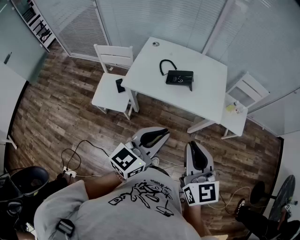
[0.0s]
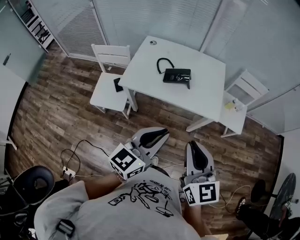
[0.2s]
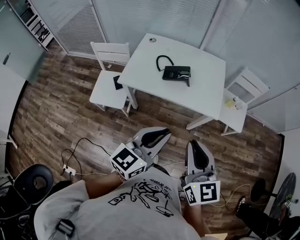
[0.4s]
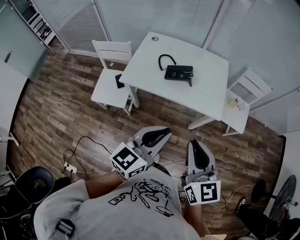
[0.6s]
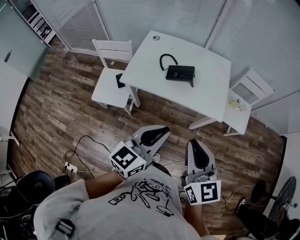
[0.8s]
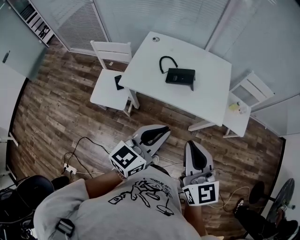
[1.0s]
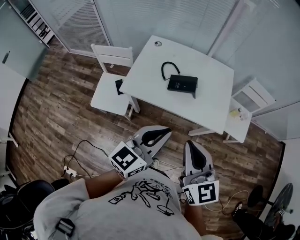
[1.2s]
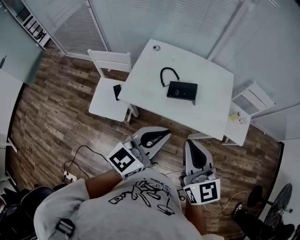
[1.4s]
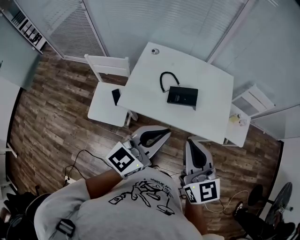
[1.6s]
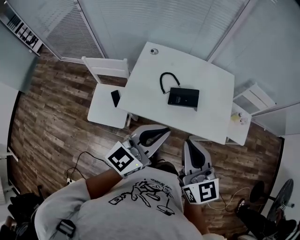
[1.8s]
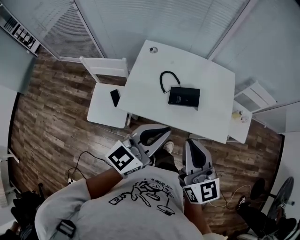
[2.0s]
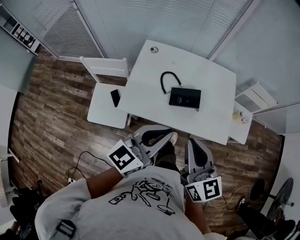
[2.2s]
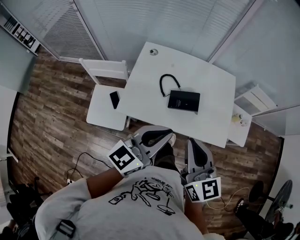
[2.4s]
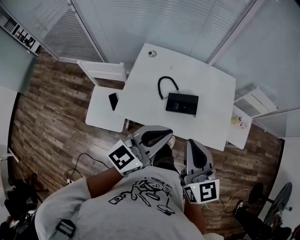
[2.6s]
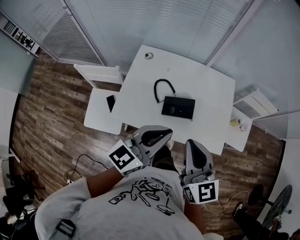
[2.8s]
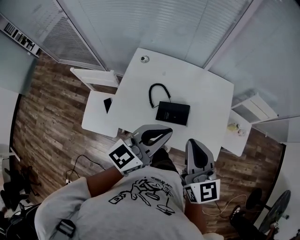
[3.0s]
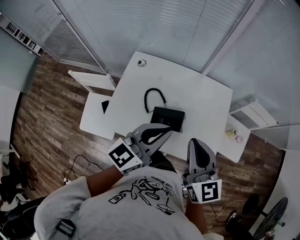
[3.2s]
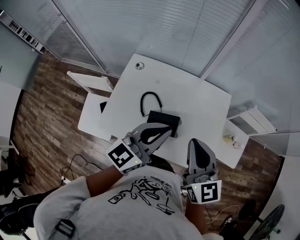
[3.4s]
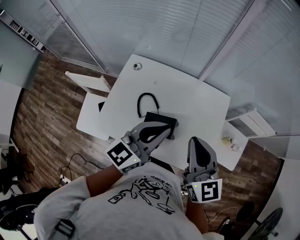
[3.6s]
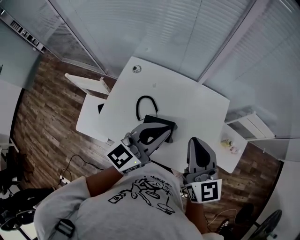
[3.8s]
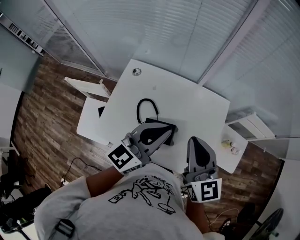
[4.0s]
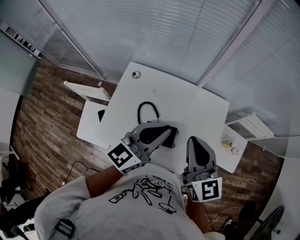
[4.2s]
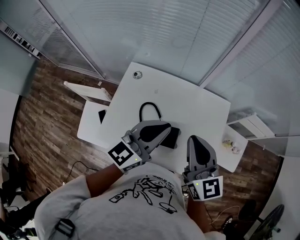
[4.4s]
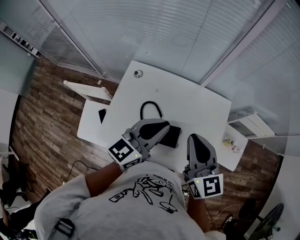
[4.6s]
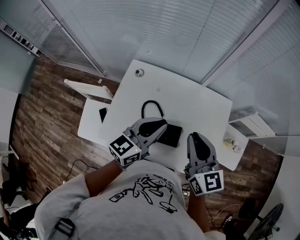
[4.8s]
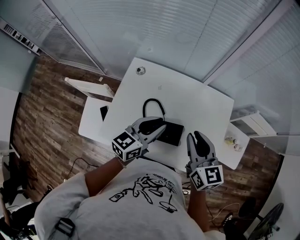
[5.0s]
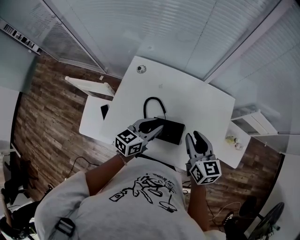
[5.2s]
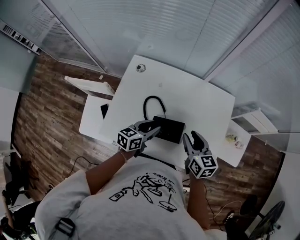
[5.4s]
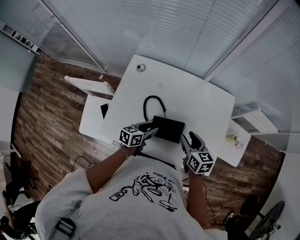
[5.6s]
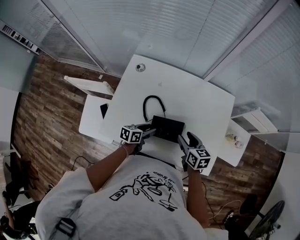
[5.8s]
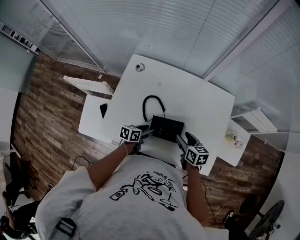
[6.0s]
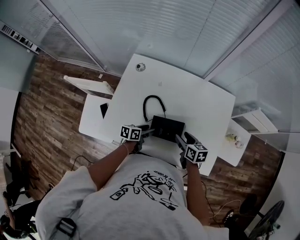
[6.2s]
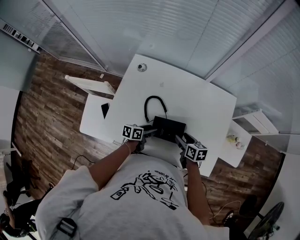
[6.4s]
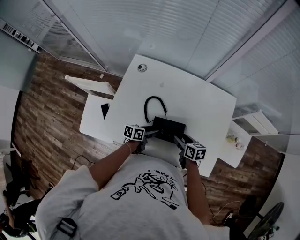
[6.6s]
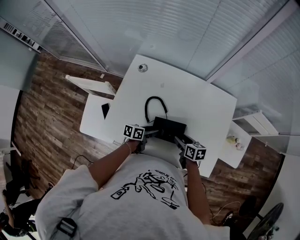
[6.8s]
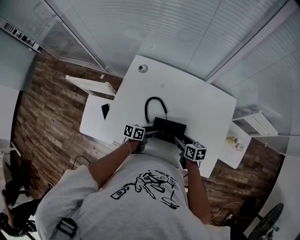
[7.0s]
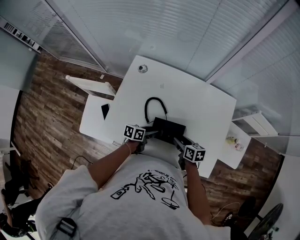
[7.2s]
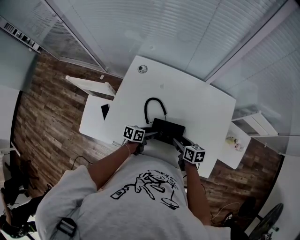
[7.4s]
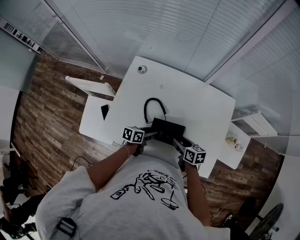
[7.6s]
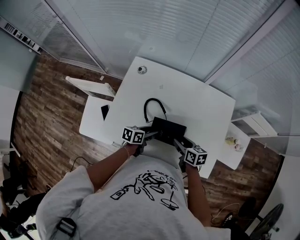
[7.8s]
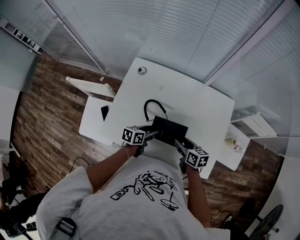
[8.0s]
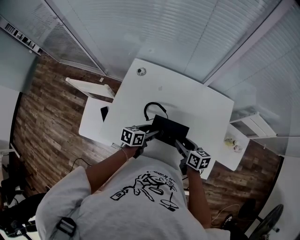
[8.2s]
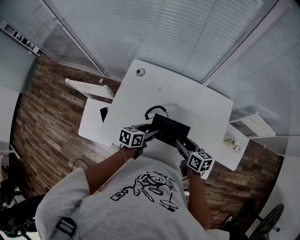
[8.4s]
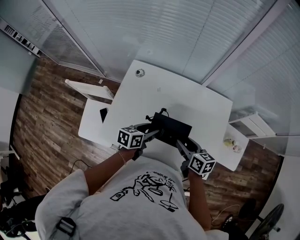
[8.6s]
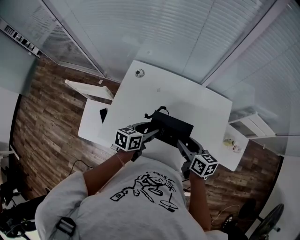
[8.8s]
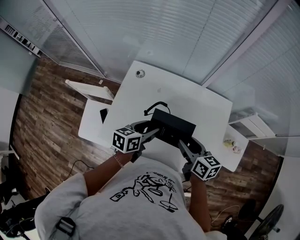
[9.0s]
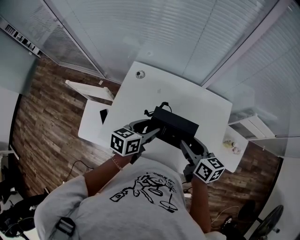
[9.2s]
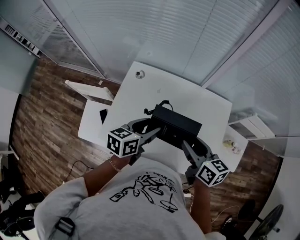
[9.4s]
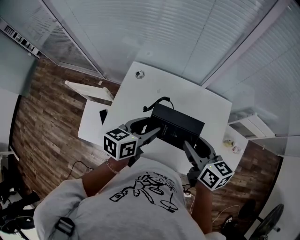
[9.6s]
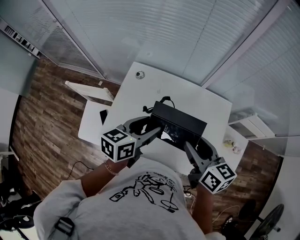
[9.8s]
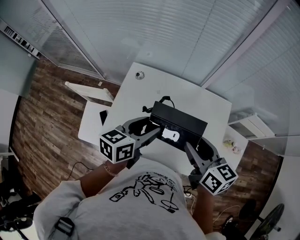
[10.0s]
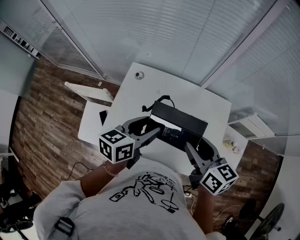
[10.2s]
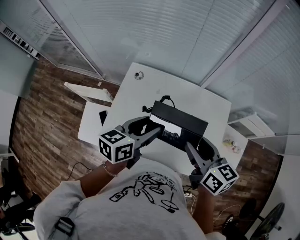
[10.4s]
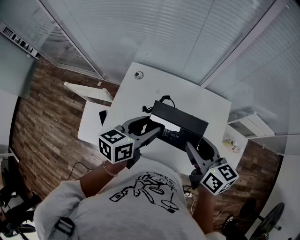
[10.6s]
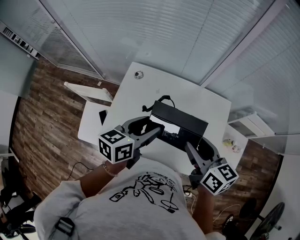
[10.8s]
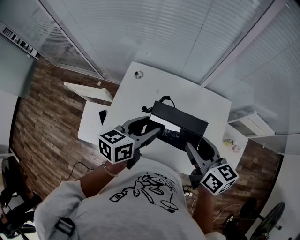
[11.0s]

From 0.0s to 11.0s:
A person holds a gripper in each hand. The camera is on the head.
From 0.0s to 1.6s: Both grippers move forward and to the left, about 20 cm.
From 1.6s to 3.2s: The grippers both shift forward by about 20 cm.
From 3.2s to 4.8s: The grippers both shift forward by some 10 cm.
From 4.8s to 6.2s: Both grippers travel together downward, some 35 cm. The right gripper rotates some 40 degrees, and opens up; the left gripper changes its angle by approximately 50 degrees, and opens its fingers.
From 6.2s to 7.8s: The grippers move only a little.
From 7.8s to 9.4s: The two grippers go approximately 25 cm upward.
From 9.4s to 11.0s: The grippers both shift upward by some 5 cm.

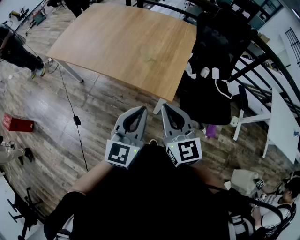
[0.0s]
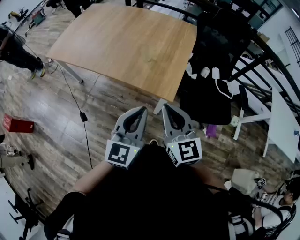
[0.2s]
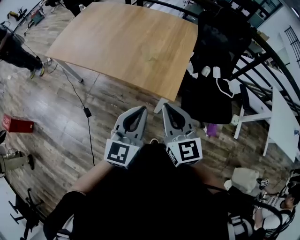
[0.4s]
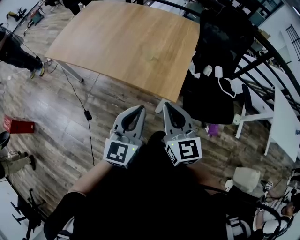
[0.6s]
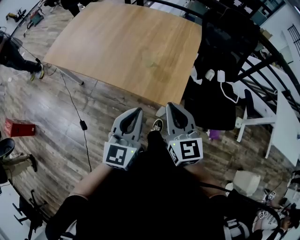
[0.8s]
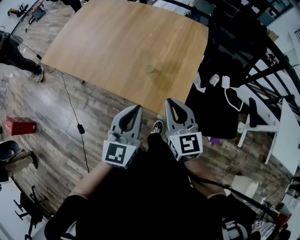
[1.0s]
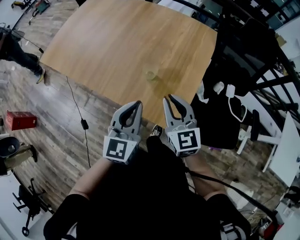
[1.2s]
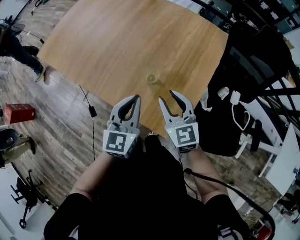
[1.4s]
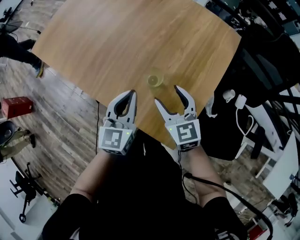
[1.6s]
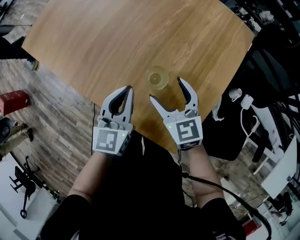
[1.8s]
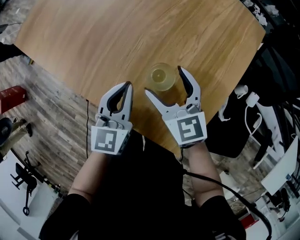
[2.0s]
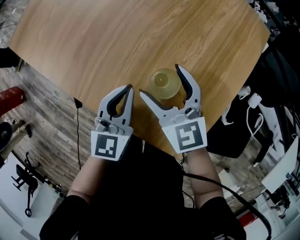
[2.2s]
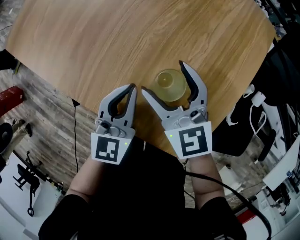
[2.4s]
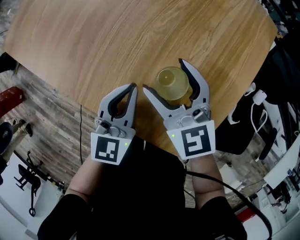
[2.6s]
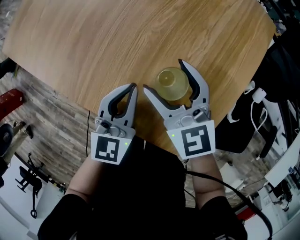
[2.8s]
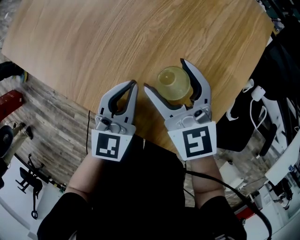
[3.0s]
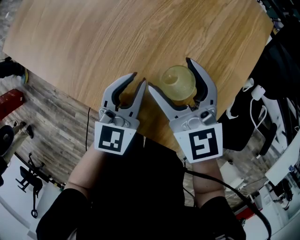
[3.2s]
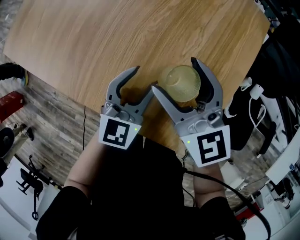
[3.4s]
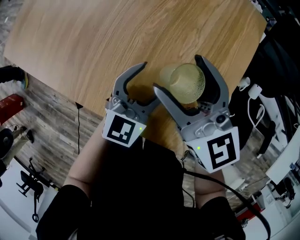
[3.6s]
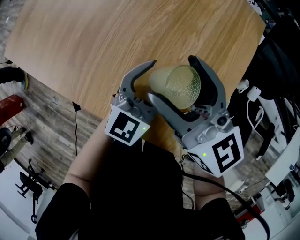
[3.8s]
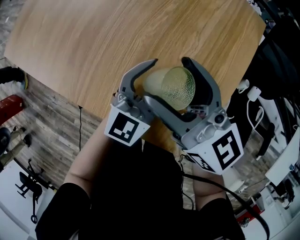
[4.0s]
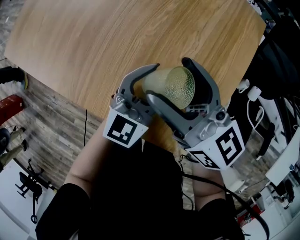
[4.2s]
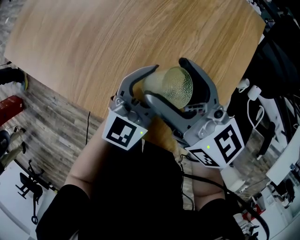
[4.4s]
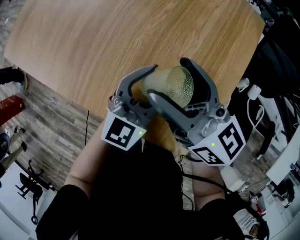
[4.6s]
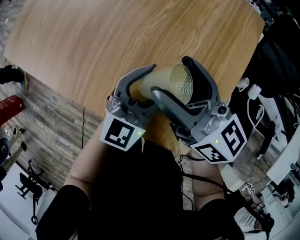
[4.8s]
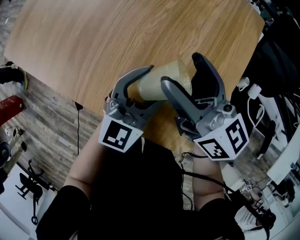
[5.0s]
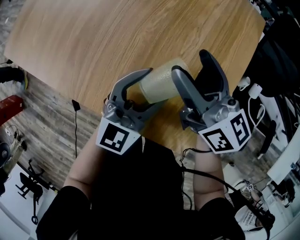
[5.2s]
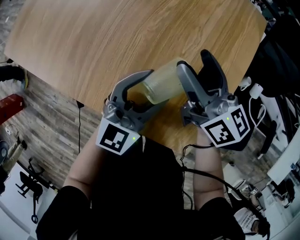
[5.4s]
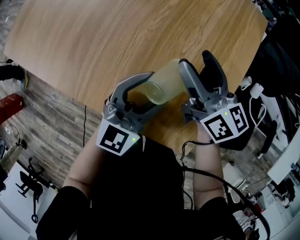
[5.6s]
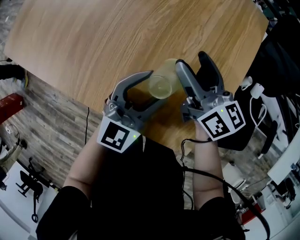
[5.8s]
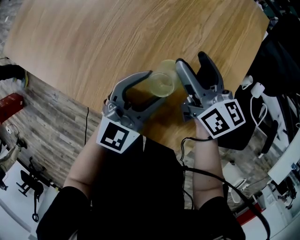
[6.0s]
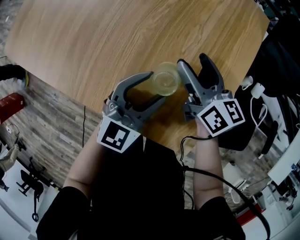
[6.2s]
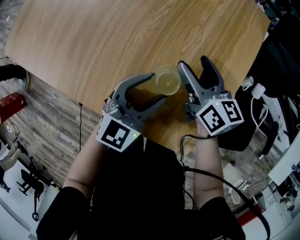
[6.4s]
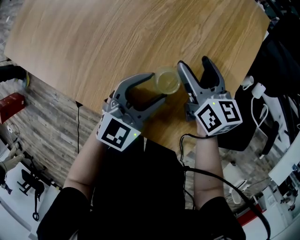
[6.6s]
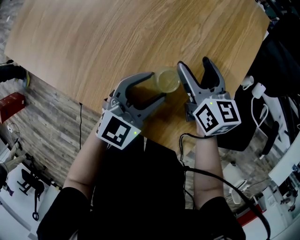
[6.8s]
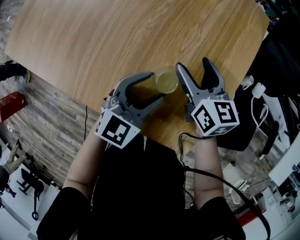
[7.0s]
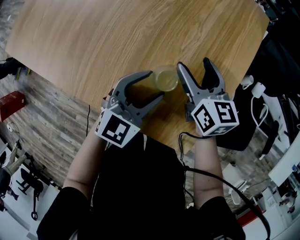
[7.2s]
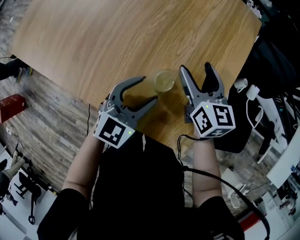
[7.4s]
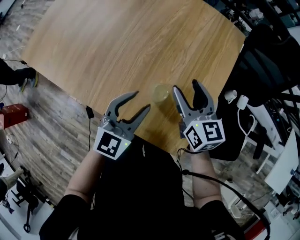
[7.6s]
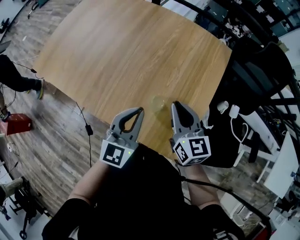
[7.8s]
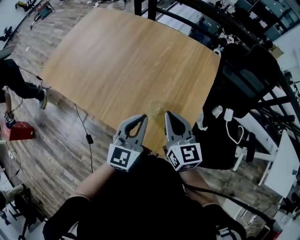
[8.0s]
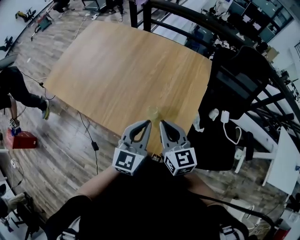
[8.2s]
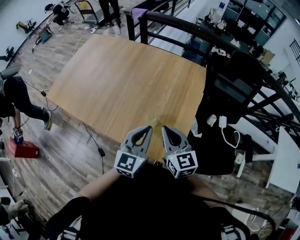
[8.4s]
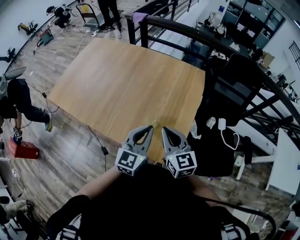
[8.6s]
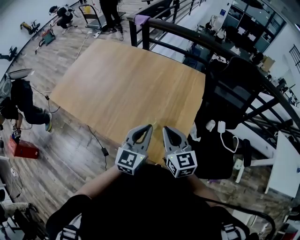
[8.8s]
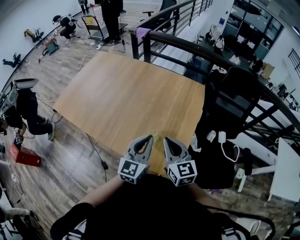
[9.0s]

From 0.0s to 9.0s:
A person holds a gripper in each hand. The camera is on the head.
From 0.0s to 1.6s: The two grippers travel together, forward, some 40 cm. Both grippers move downward, roughly 20 cm. The left gripper changes its angle by approximately 20 degrees, while the right gripper swivels roughly 20 degrees, and opens its fingers.
From 1.6s to 3.0s: The left gripper travels downward and forward by roughly 15 cm. Meanwhile the right gripper travels forward, to the left and downward by approximately 15 cm.
From 3.0s to 4.4s: The right gripper travels upward by approximately 10 cm, and turns by roughly 30 degrees. The left gripper travels to the right by approximately 10 cm, turns by about 30 degrees, and opens.
From 4.4s to 6.0s: The right gripper moves downward and to the right, some 10 cm.
From 6.0s to 7.6s: The right gripper shifts roughly 10 cm upward and backward; the left gripper goes some 10 cm upward.
From 7.6s to 9.0s: Both grippers travel together upward and backward, about 20 cm. The left gripper closes up. Meanwhile the right gripper closes up.

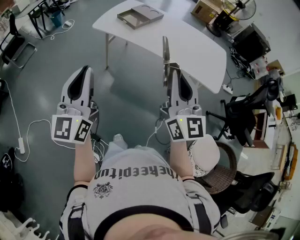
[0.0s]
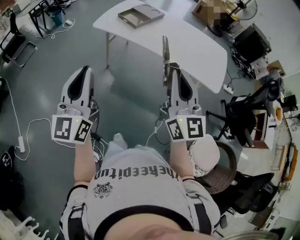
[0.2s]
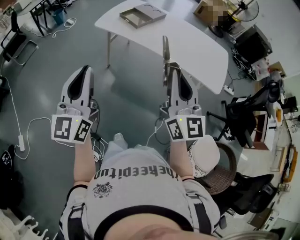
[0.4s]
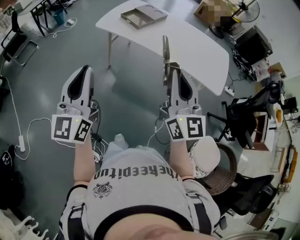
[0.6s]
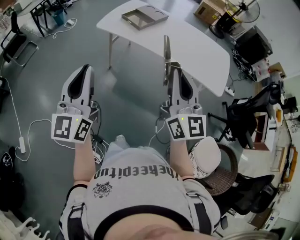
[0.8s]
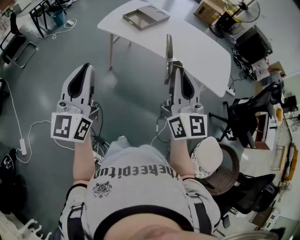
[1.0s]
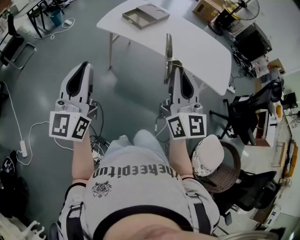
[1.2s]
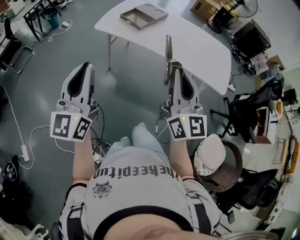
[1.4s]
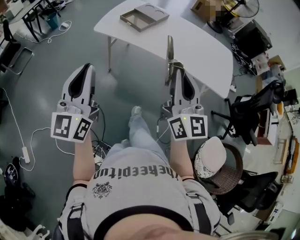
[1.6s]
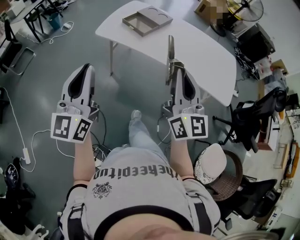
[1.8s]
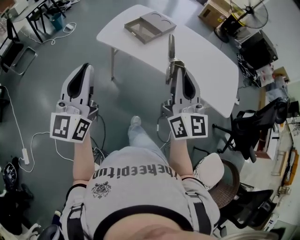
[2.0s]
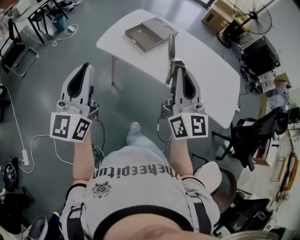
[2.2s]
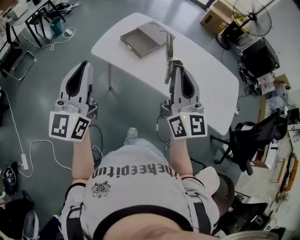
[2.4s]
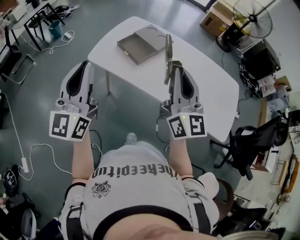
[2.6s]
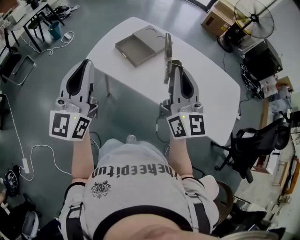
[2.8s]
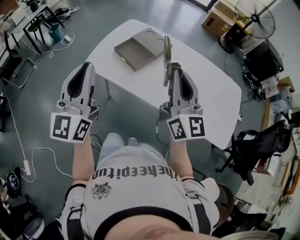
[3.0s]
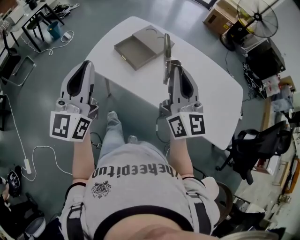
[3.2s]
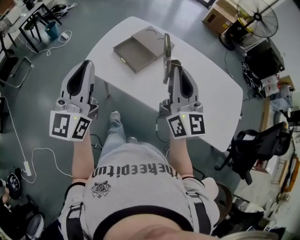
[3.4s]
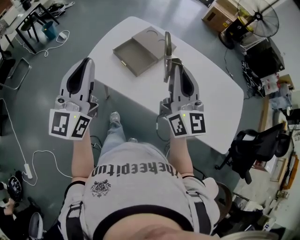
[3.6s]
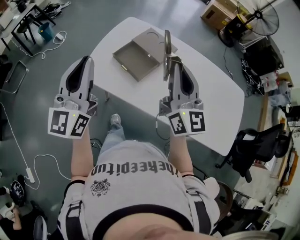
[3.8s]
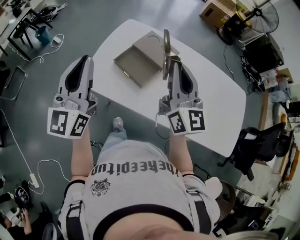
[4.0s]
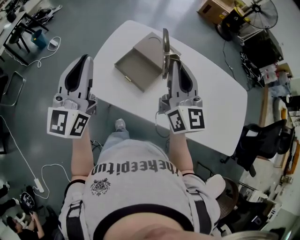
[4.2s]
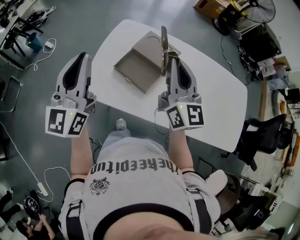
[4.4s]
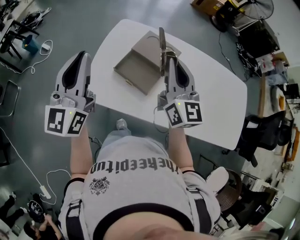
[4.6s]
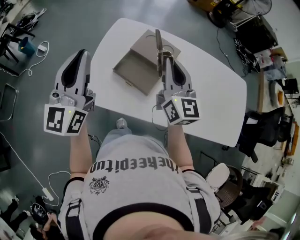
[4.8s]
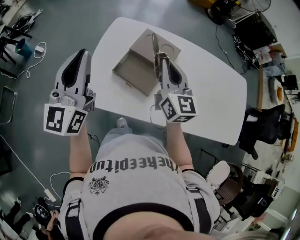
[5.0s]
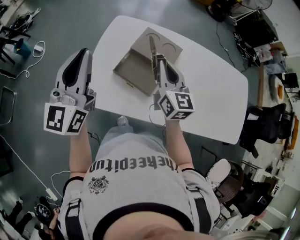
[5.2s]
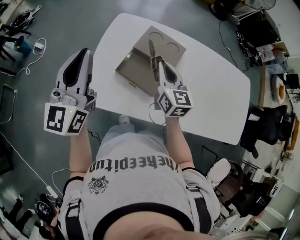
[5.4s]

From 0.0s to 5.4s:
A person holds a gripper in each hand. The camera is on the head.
From 0.0s to 1.4s: The left gripper travels forward and to the left by roughly 10 cm, while the right gripper heads to the left and forward, covering roughly 10 cm.
From 1.4s to 2.8s: Both grippers travel together forward, roughly 35 cm.
From 2.8s to 4.0s: Both grippers travel together forward, roughly 20 cm.
From 4.0s to 5.4s: The left gripper is displaced forward by roughly 15 cm. Meanwhile the right gripper is displaced downward and forward by roughly 25 cm, and turns by approximately 30 degrees.
